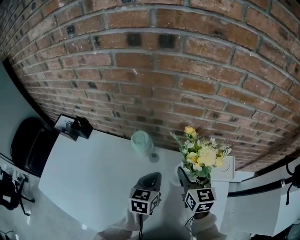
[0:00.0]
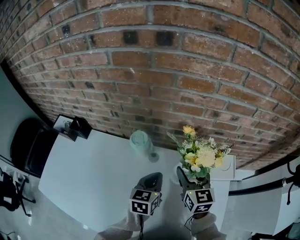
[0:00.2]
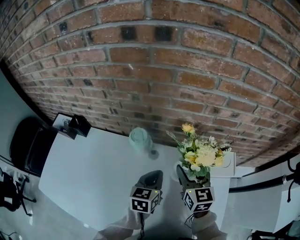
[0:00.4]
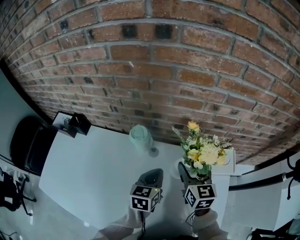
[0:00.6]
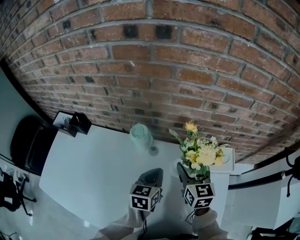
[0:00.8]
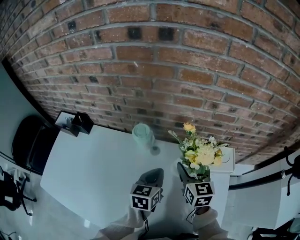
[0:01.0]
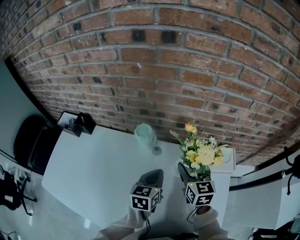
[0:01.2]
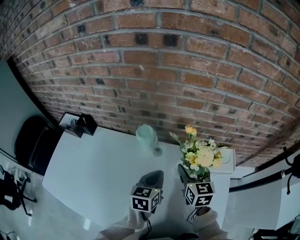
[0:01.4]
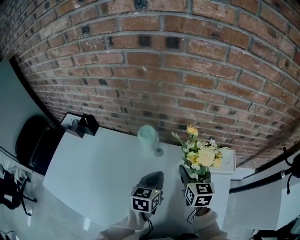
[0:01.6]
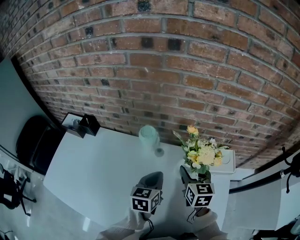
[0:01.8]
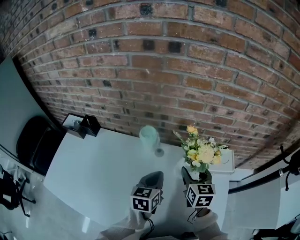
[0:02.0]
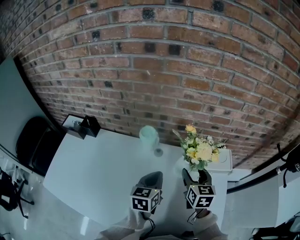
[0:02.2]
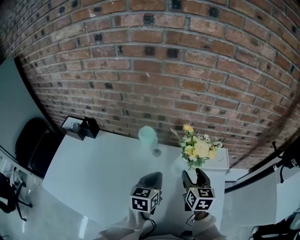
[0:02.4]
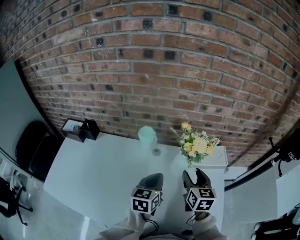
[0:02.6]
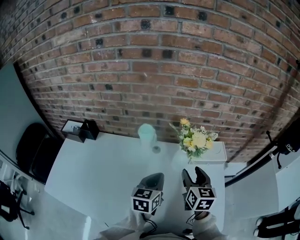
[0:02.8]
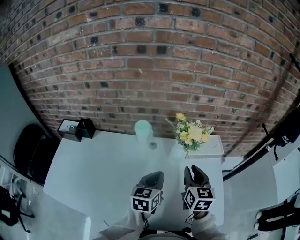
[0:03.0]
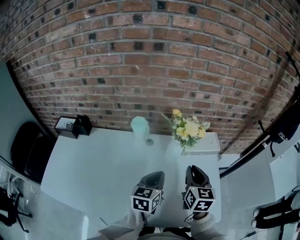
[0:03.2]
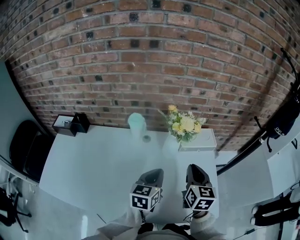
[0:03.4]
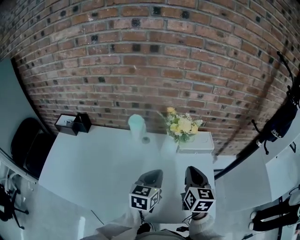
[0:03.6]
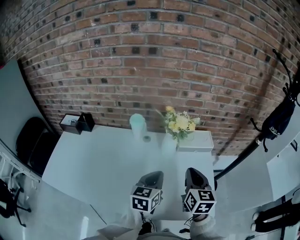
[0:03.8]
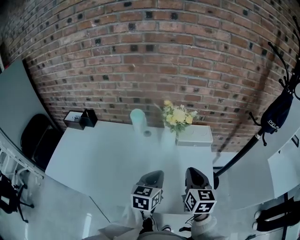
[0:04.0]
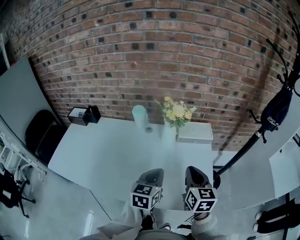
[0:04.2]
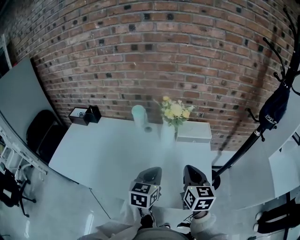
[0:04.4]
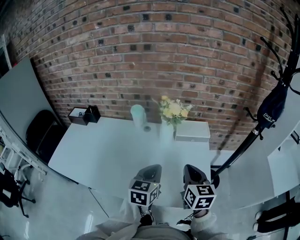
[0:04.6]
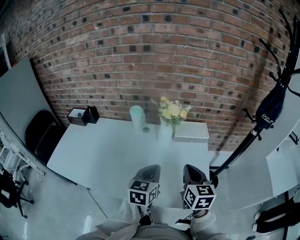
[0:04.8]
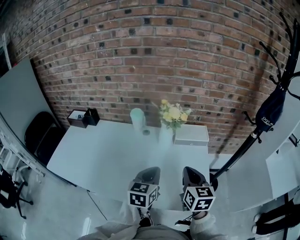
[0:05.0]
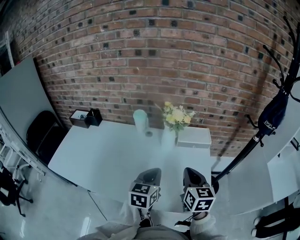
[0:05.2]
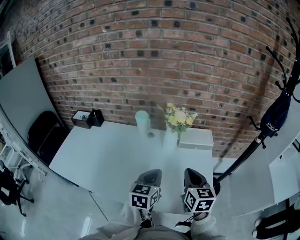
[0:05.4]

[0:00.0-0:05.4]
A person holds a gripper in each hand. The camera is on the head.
0:00.0 to 0:01.4: The grippers make only small movements.
0:01.4 to 0:02.8: Both grippers move backward, about 10 cm.
0:02.8 to 0:04.0: Both grippers move backward and to the right, roughly 15 cm. The right gripper closes up.
0:04.0 to 0:05.4: The grippers stay close to where they were, moving slightly.

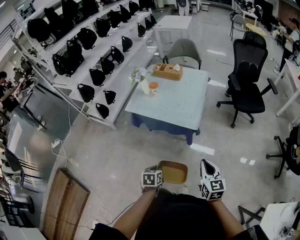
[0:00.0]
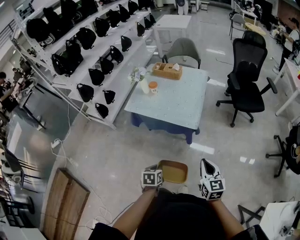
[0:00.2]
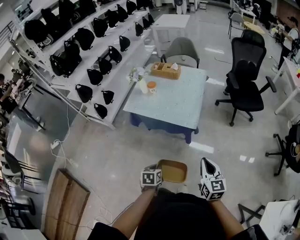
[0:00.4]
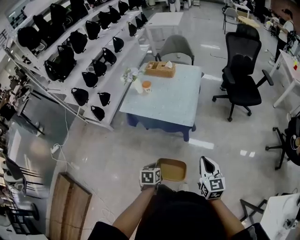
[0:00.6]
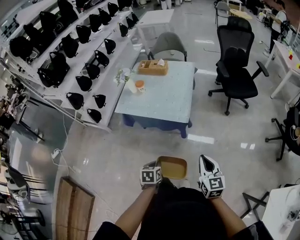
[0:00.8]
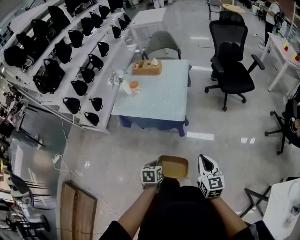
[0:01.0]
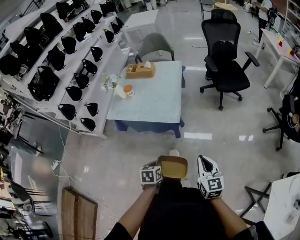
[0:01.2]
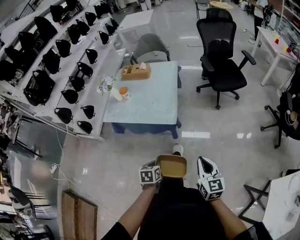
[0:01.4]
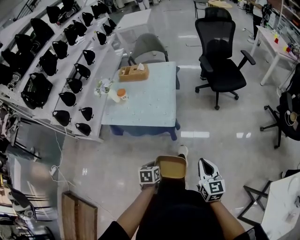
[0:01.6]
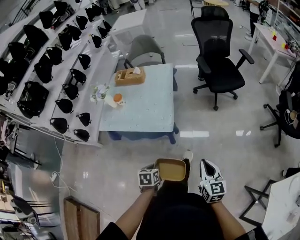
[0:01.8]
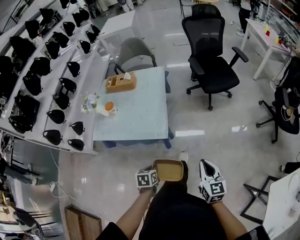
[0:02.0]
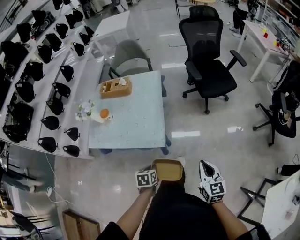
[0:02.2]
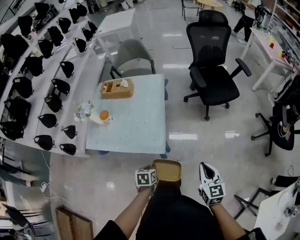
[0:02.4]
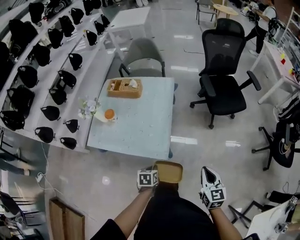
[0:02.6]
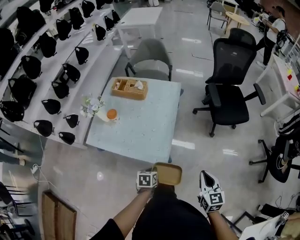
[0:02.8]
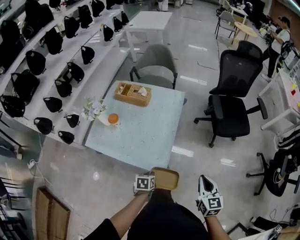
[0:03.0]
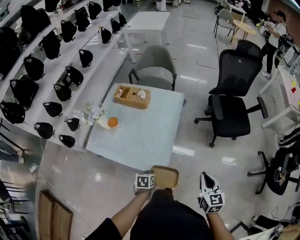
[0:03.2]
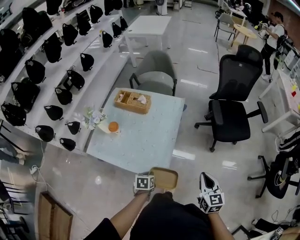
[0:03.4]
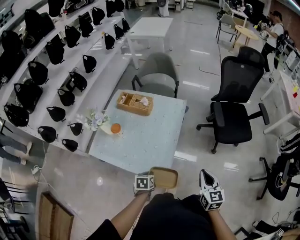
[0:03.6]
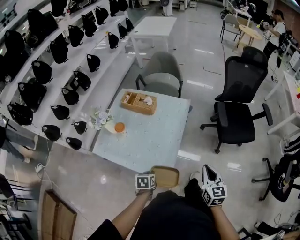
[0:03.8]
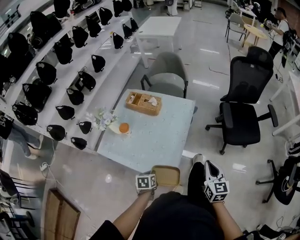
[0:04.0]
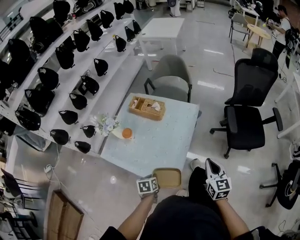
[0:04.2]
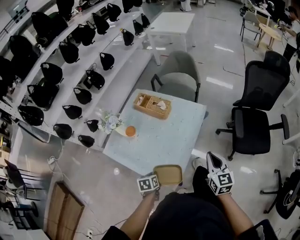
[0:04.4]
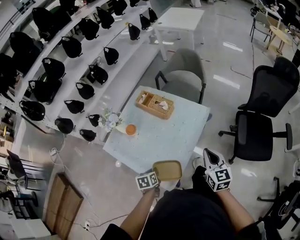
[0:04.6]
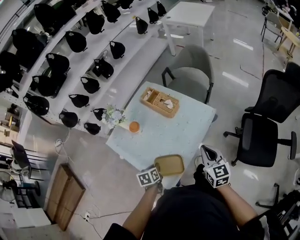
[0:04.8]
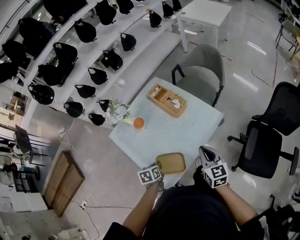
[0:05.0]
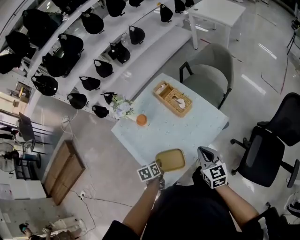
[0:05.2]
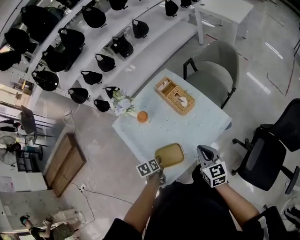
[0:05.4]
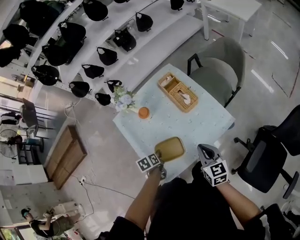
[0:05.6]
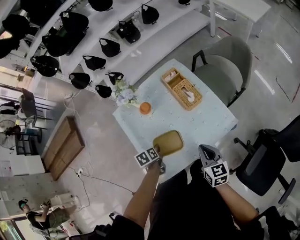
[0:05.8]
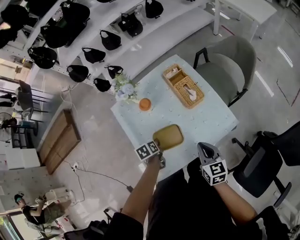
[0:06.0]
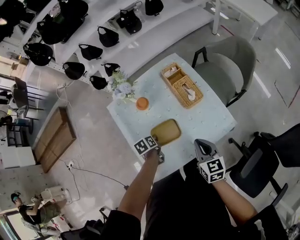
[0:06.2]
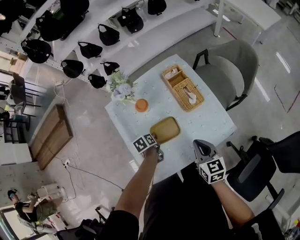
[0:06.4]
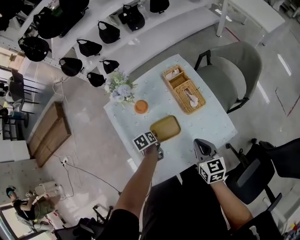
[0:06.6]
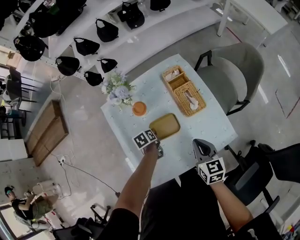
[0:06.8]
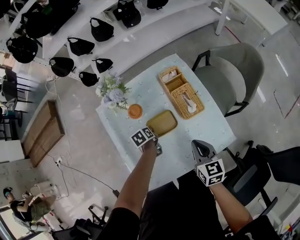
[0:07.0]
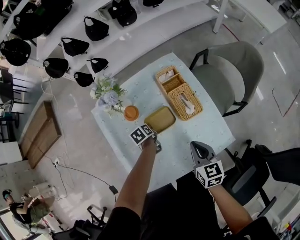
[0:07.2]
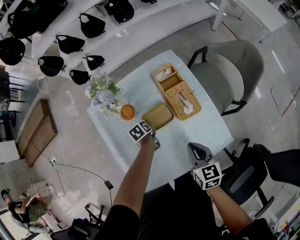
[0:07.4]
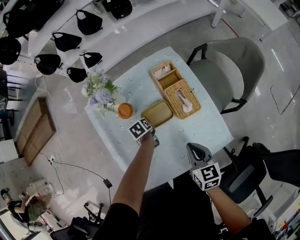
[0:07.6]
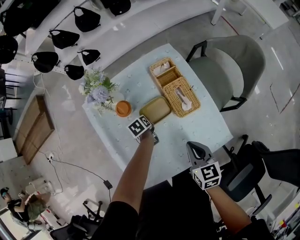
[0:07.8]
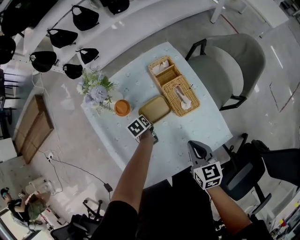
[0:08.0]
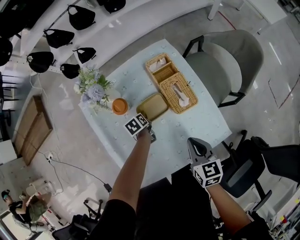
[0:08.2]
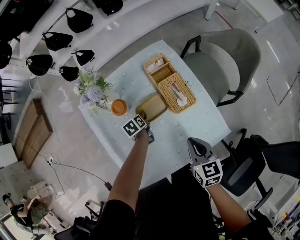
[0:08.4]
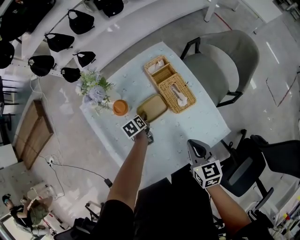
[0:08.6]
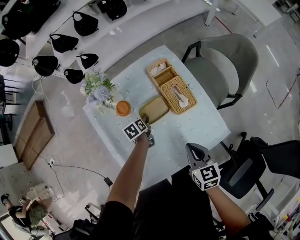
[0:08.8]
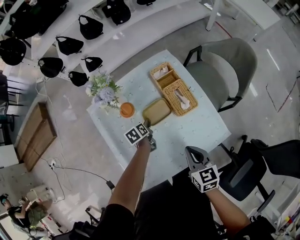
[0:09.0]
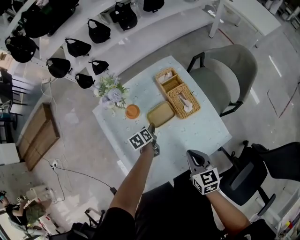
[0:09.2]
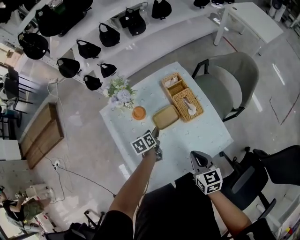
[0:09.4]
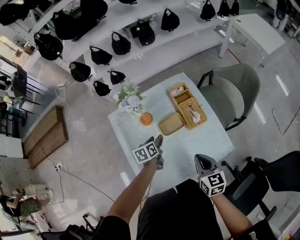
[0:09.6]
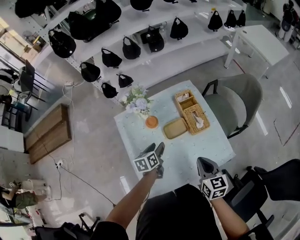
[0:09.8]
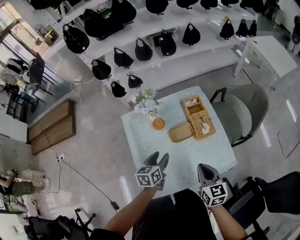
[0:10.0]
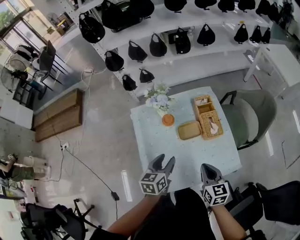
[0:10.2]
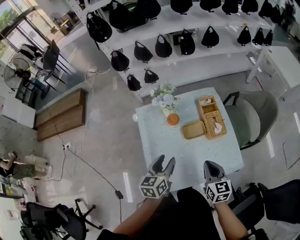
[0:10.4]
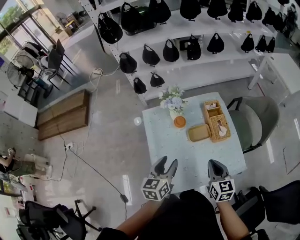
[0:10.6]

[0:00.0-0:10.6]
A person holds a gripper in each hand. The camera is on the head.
0:00.0 to 0:01.6: The right gripper moves to the right, roughly 10 cm, while the left gripper travels to the right and forward by roughly 15 cm.
0:01.6 to 0:03.0: Both grippers move forward, approximately 30 cm.
0:03.0 to 0:04.6: The left gripper shifts by approximately 15 cm, and swivels approximately 30 degrees. Meanwhile the right gripper changes place by about 30 cm, and turns by approximately 20 degrees.
0:04.6 to 0:06.0: The left gripper ends up some 15 cm from where it was, and rotates about 40 degrees, while the right gripper shifts by roughly 20 cm, and turns by about 40 degrees.
0:06.0 to 0:07.6: The left gripper heads forward and downward, covering some 25 cm, while the right gripper shifts roughly 15 cm forward and downward.
0:07.6 to 0:09.0: The right gripper changes place by approximately 5 cm, while the left gripper opens up.
0:09.0 to 0:10.6: The right gripper is displaced upward and to the left by roughly 15 cm, while the left gripper heads upward and backward, covering roughly 40 cm, and tips its fingers upward by about 30 degrees.

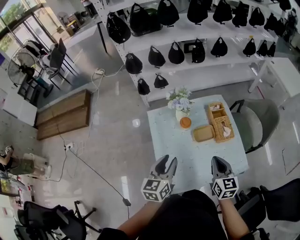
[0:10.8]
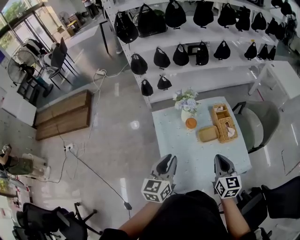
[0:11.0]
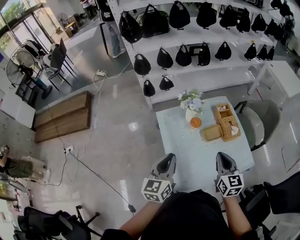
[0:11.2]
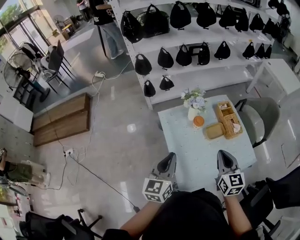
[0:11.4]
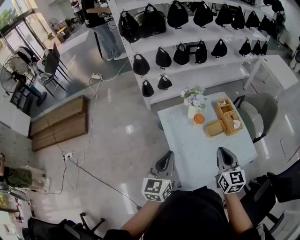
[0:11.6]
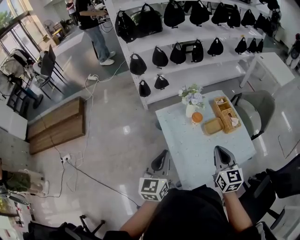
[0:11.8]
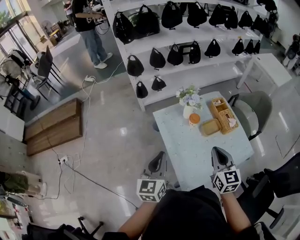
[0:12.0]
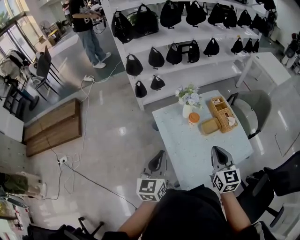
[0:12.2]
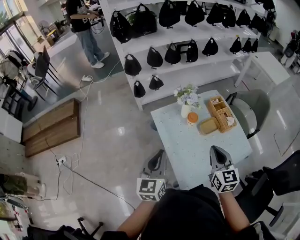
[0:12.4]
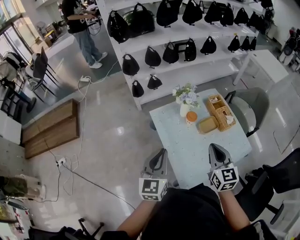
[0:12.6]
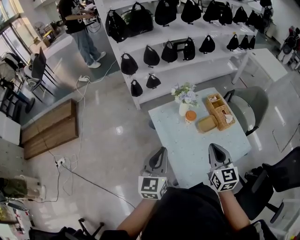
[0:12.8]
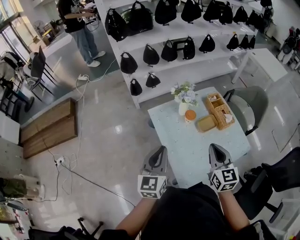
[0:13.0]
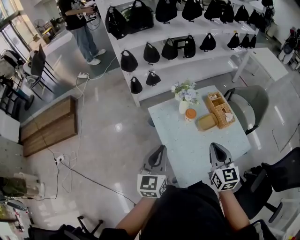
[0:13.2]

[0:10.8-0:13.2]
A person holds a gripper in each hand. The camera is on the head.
0:10.8 to 0:12.0: The left gripper heads to the left, covering roughly 20 cm, and closes. Meanwhile the right gripper moves to the left and upward, approximately 20 cm.
0:12.0 to 0:13.2: The grippers stay close to where they were, moving slightly.

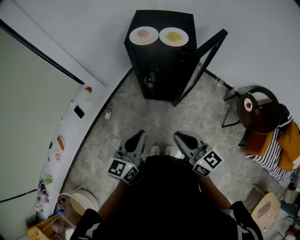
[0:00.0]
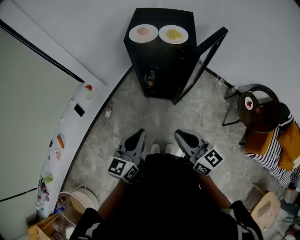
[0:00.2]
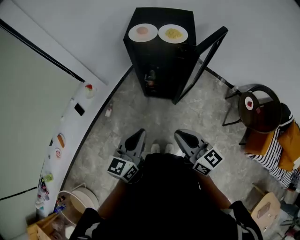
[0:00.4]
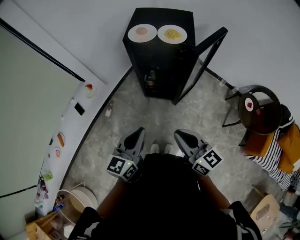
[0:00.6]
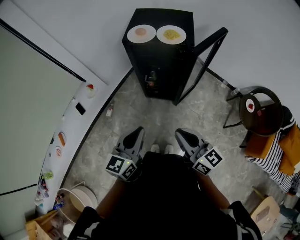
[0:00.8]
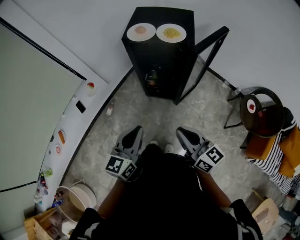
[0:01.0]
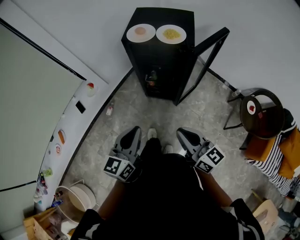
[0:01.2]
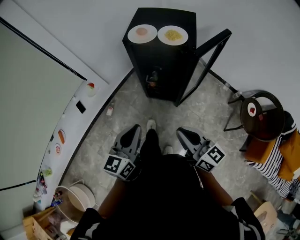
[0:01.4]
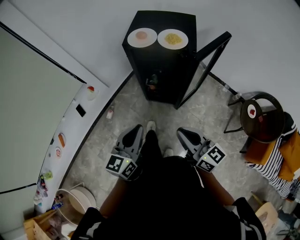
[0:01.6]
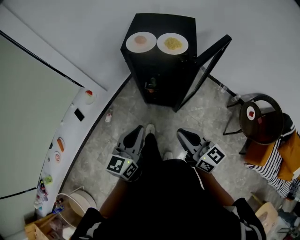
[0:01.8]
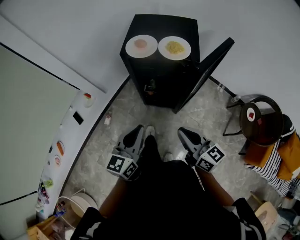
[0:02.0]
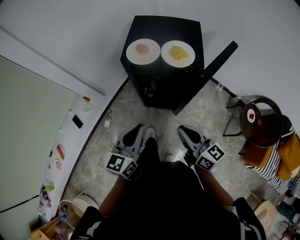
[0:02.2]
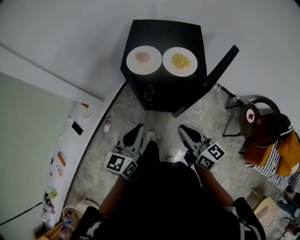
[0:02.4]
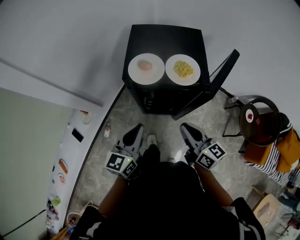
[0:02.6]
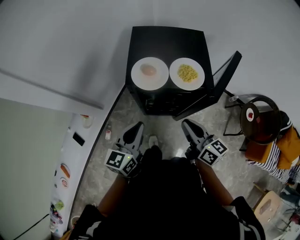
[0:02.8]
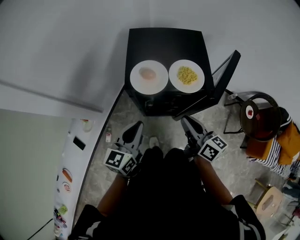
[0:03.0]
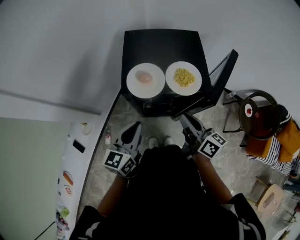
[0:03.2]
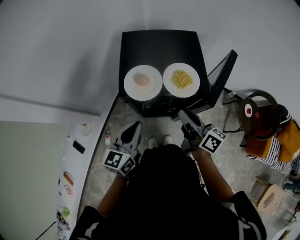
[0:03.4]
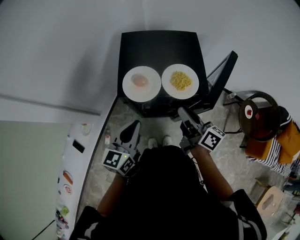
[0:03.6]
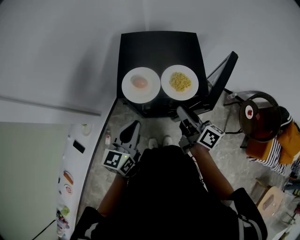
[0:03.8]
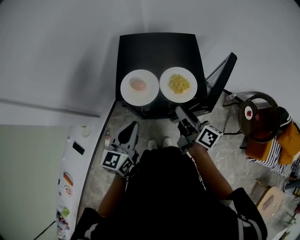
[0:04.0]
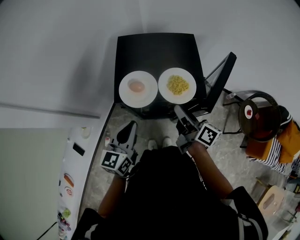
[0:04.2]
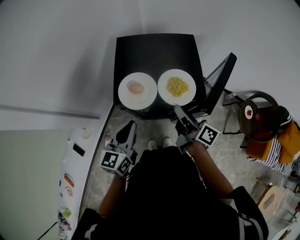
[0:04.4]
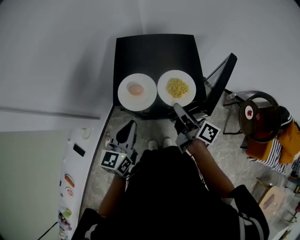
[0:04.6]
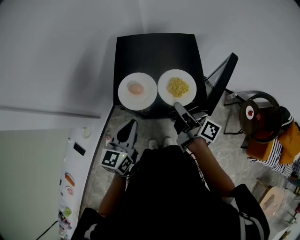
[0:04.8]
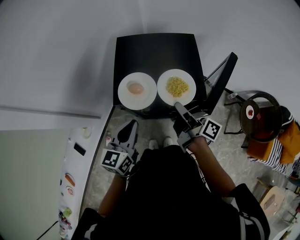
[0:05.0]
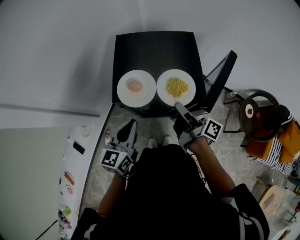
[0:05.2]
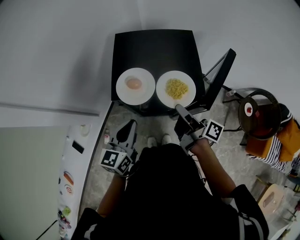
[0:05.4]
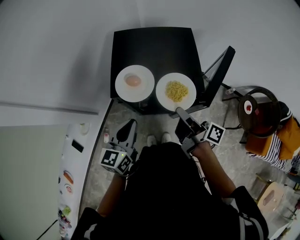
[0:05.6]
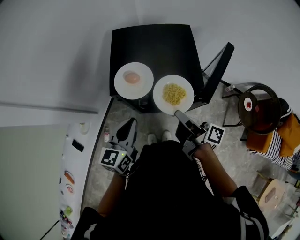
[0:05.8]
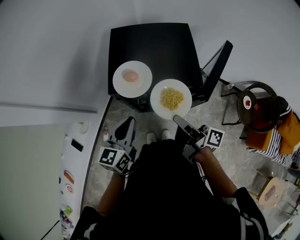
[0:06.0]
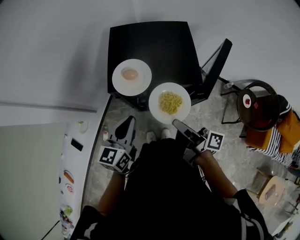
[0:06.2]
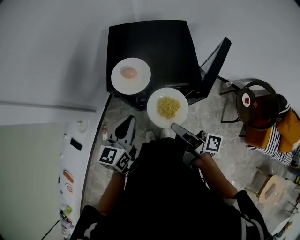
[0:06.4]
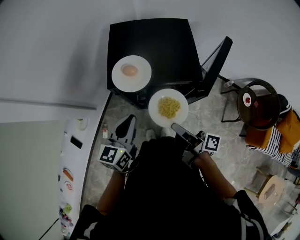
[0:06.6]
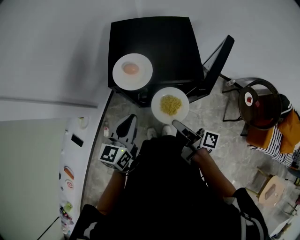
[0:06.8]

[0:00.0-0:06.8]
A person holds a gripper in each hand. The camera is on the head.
0:00.0 to 0:01.4: The right gripper is displaced to the right by some 5 cm.
0:01.4 to 0:02.8: The grippers both shift forward by about 30 cm. The right gripper changes its angle by roughly 20 degrees.
0:02.8 to 0:04.0: The right gripper is displaced forward by some 10 cm, and swivels approximately 20 degrees. The left gripper moves forward, about 5 cm.
0:04.0 to 0:05.4: The right gripper rotates approximately 20 degrees.
0:05.4 to 0:06.8: The right gripper is displaced backward and downward by about 10 cm.
